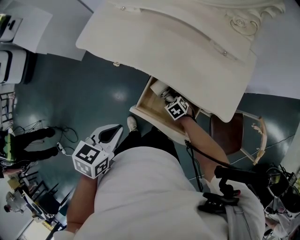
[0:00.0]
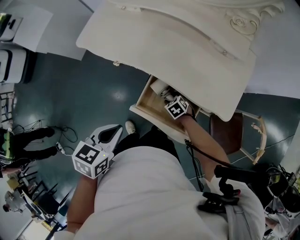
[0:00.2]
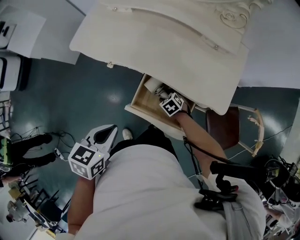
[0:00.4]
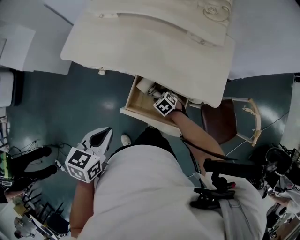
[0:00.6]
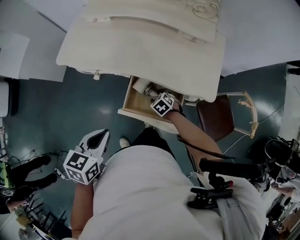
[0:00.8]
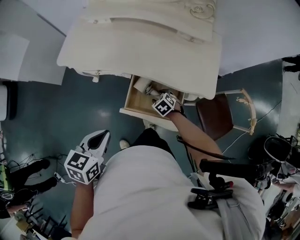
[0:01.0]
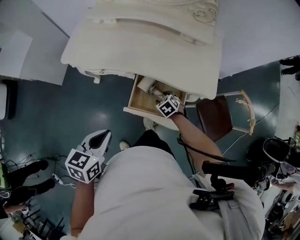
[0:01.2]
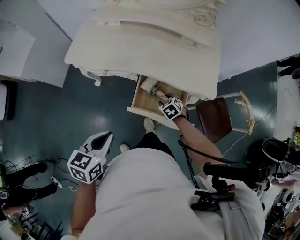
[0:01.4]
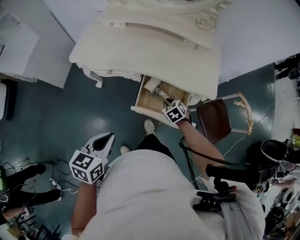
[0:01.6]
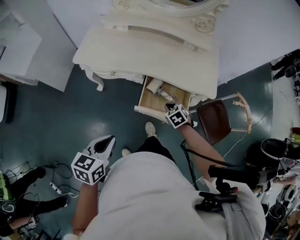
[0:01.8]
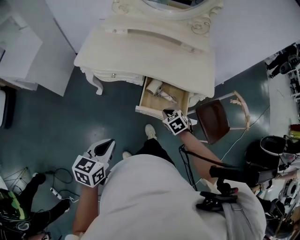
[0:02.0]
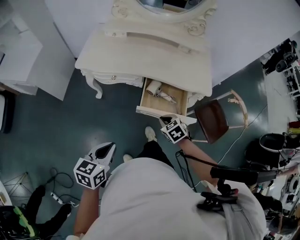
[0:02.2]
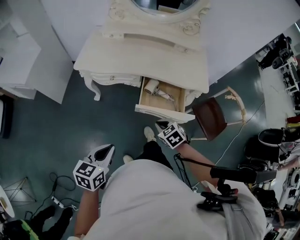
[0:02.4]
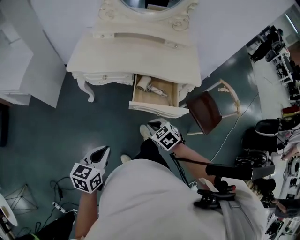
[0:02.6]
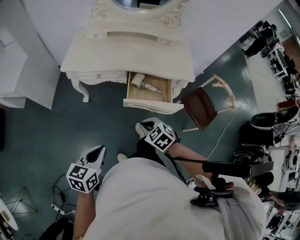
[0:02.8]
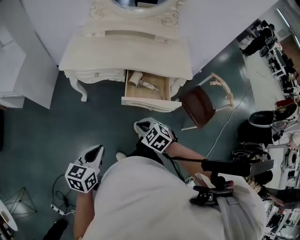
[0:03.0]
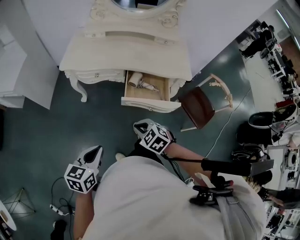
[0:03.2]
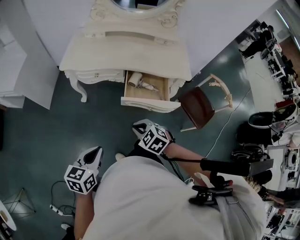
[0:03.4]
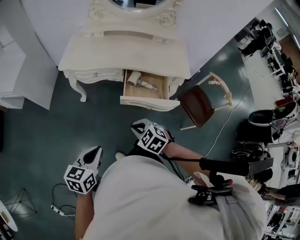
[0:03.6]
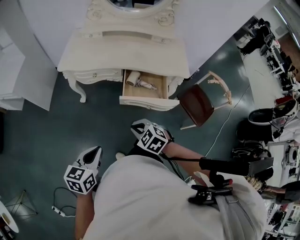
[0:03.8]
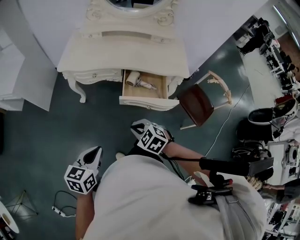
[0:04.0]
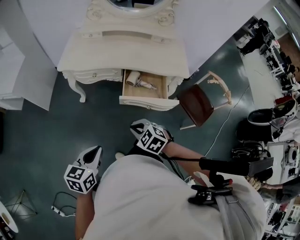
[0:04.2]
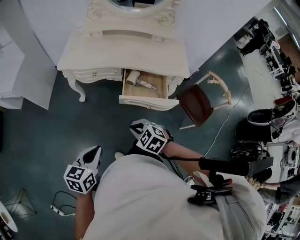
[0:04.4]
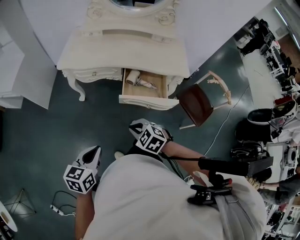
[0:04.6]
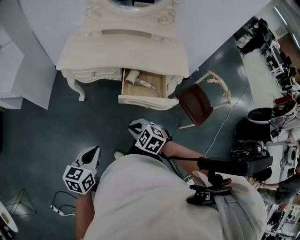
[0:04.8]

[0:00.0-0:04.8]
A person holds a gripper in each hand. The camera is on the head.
0.0 to 1.6 s: The left gripper shifts roughly 15 cm to the left and backward, while the right gripper is displaced upward and backward by roughly 10 cm, and closes.
1.6 to 3.2 s: The left gripper is displaced backward and to the left by about 20 cm. Meanwhile the right gripper goes some 35 cm backward, upward and to the left.
3.2 to 4.8 s: The grippers stay close to where they were, moving slightly.

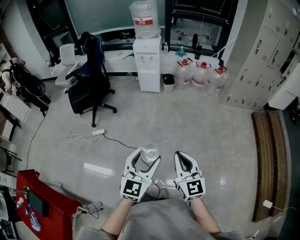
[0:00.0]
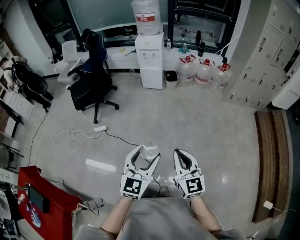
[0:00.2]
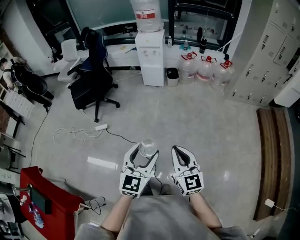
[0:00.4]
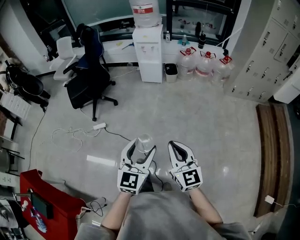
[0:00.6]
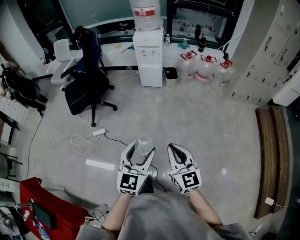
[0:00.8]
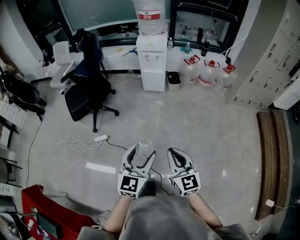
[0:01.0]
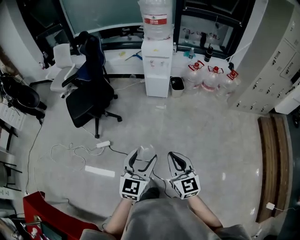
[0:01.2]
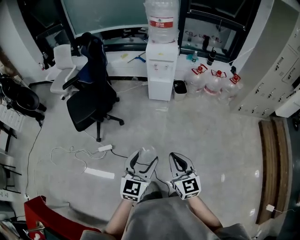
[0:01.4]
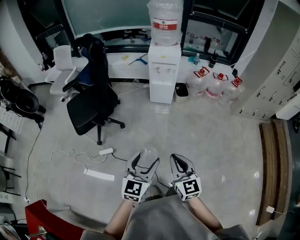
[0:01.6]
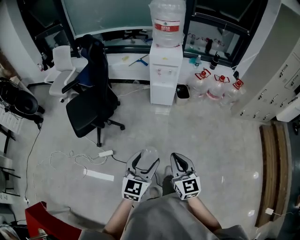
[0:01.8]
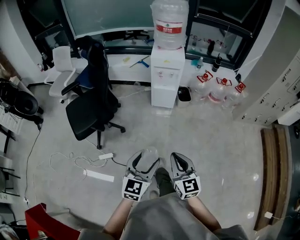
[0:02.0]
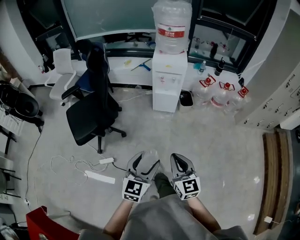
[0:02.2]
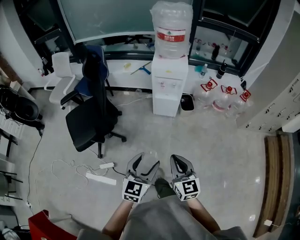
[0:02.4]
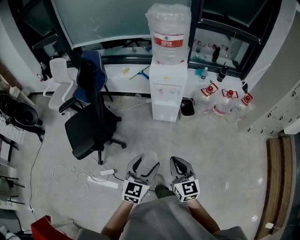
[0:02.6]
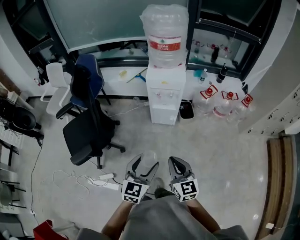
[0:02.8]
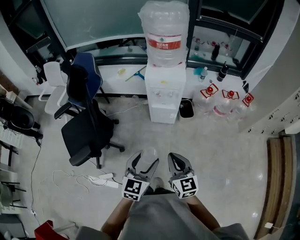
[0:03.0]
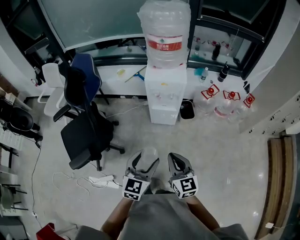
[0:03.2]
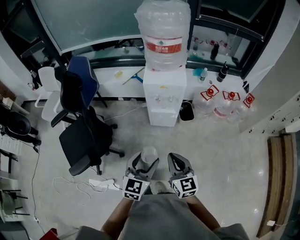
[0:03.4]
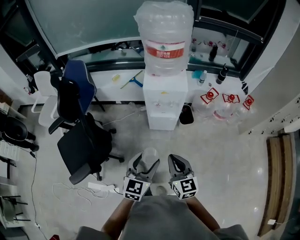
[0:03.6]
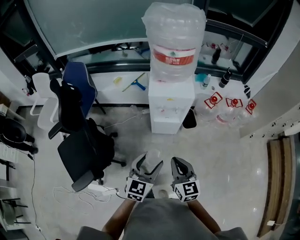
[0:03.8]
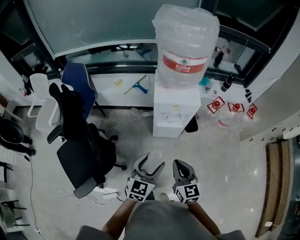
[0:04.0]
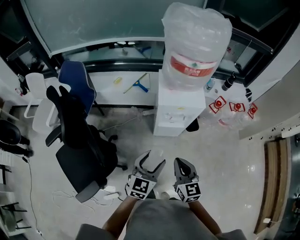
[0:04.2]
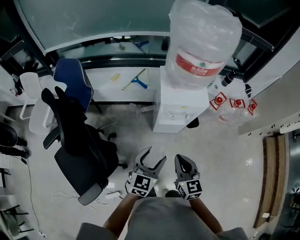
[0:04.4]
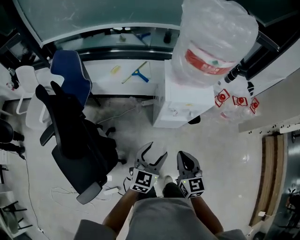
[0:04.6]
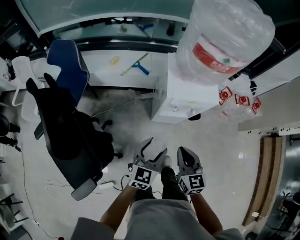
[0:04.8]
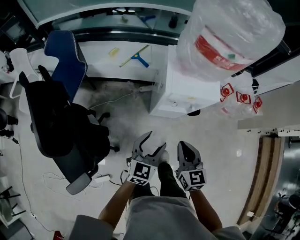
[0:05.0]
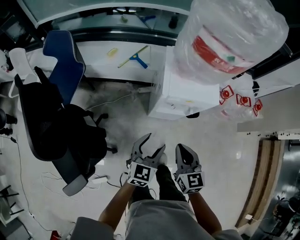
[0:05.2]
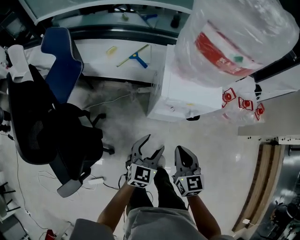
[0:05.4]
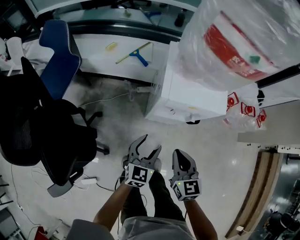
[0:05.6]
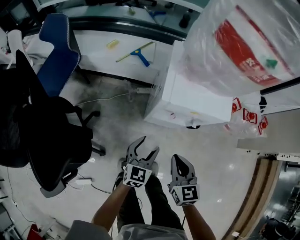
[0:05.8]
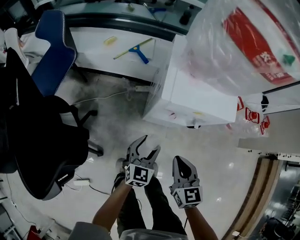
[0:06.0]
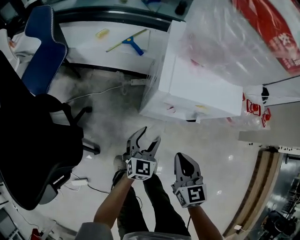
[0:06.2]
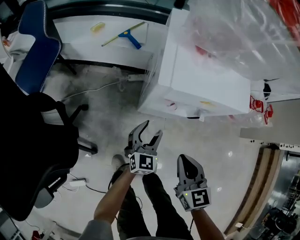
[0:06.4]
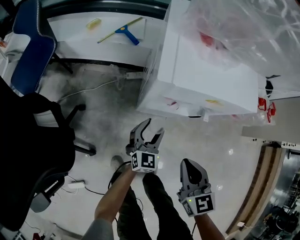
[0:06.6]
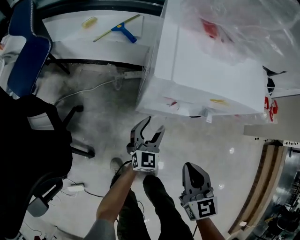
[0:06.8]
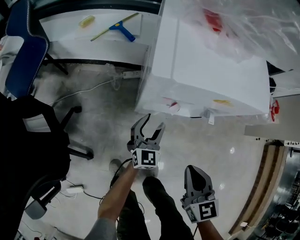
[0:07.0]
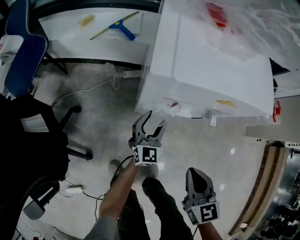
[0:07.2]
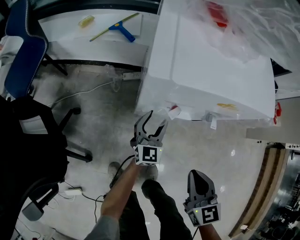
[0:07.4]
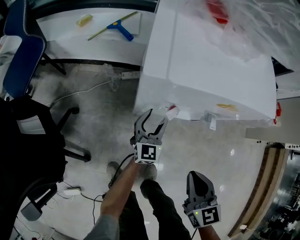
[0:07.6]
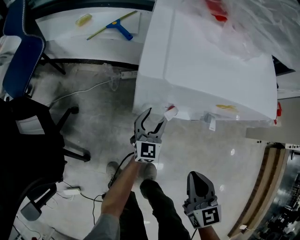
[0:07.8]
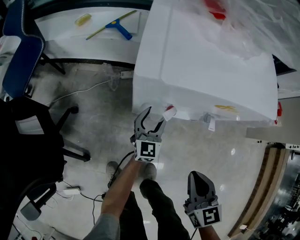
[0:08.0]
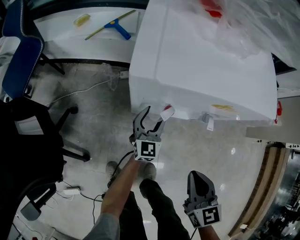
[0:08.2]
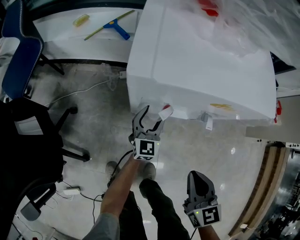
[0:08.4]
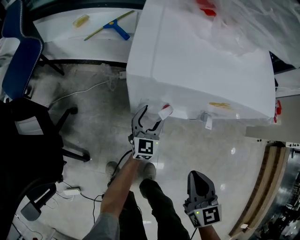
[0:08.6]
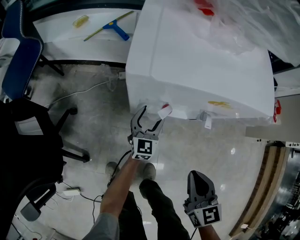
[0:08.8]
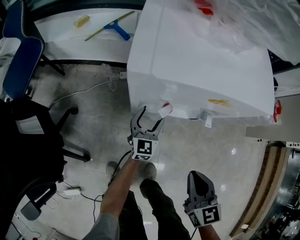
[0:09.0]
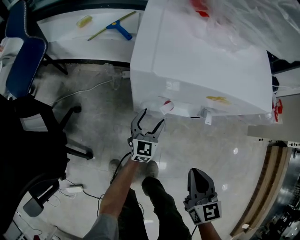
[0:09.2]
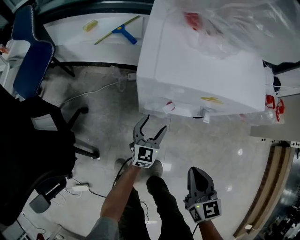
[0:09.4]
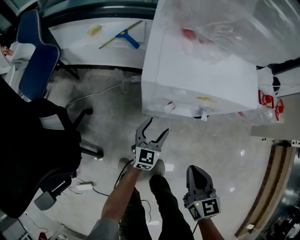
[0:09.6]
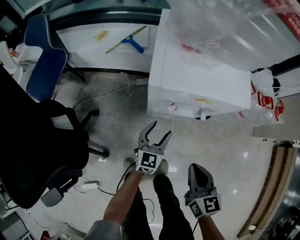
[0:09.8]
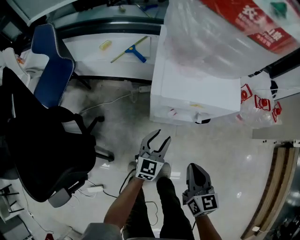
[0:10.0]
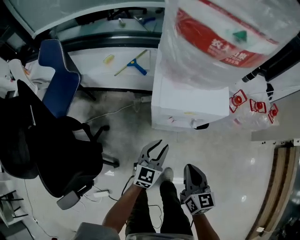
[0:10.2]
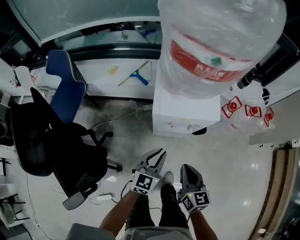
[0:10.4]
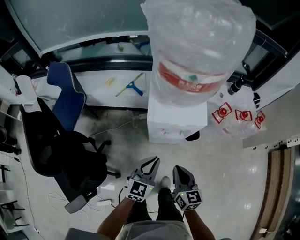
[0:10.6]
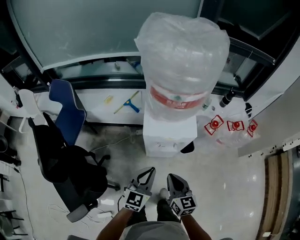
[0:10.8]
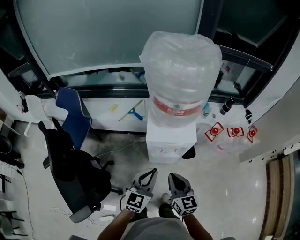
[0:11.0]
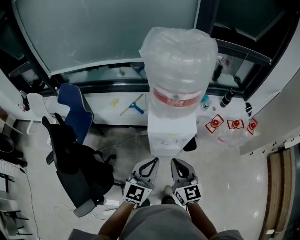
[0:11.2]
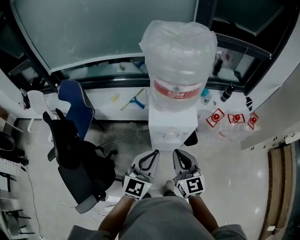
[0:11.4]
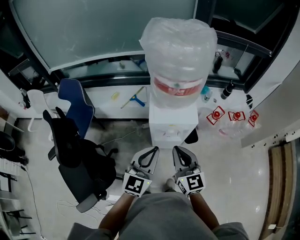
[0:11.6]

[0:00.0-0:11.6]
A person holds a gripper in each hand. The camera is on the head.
0.0 to 1.4 s: Both grippers travel together forward and to the left, some 35 cm.
1.4 to 2.8 s: The grippers both shift forward by approximately 35 cm.
2.8 to 4.4 s: Both grippers move forward and to the left, approximately 35 cm.
4.4 to 5.8 s: The two grippers go roughly 25 cm downward and forward.
5.8 to 7.2 s: The left gripper shifts about 25 cm downward and forward, while the right gripper heads downward and to the right, covering approximately 15 cm.
7.2 to 8.8 s: The left gripper ends up about 5 cm from where it was.
8.8 to 10.2 s: The right gripper heads upward and to the left, covering about 15 cm, while the left gripper goes roughly 30 cm upward and backward, and closes its fingers.
10.2 to 11.6 s: The grippers both shift upward by roughly 30 cm. The right gripper swivels about 30 degrees.

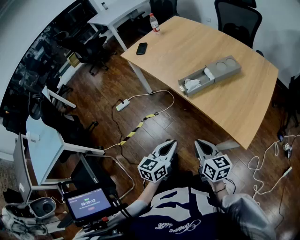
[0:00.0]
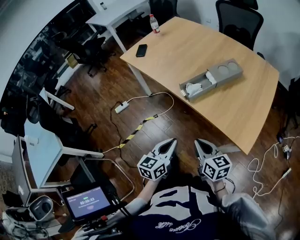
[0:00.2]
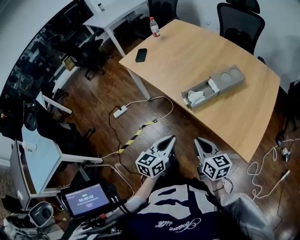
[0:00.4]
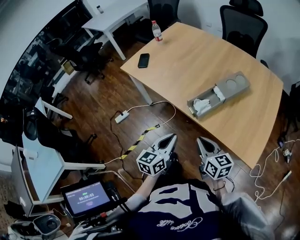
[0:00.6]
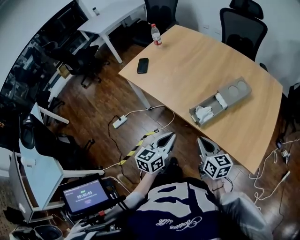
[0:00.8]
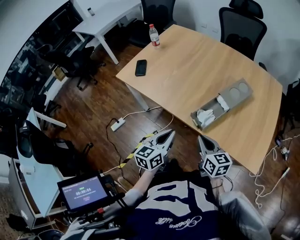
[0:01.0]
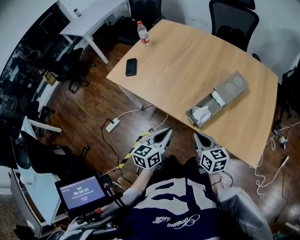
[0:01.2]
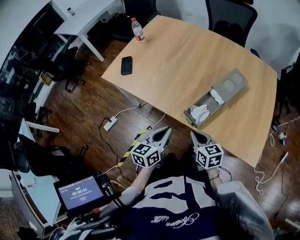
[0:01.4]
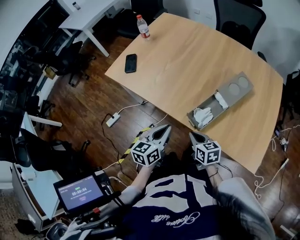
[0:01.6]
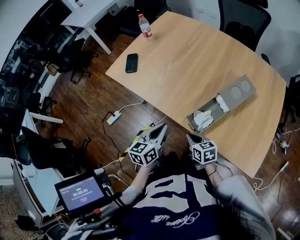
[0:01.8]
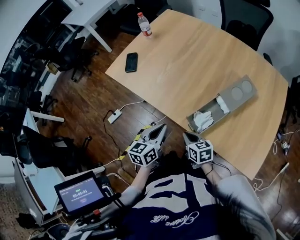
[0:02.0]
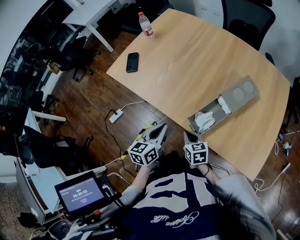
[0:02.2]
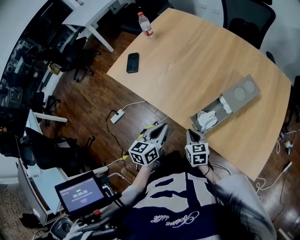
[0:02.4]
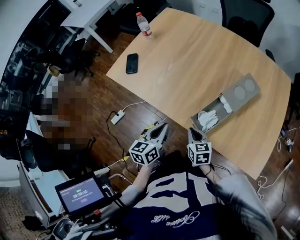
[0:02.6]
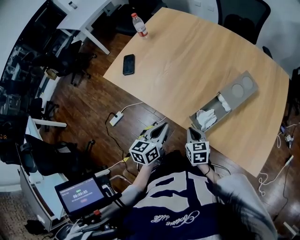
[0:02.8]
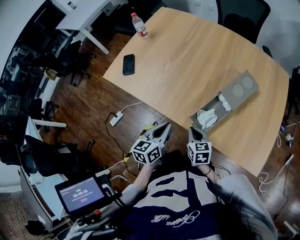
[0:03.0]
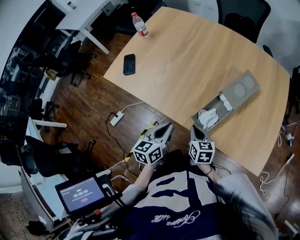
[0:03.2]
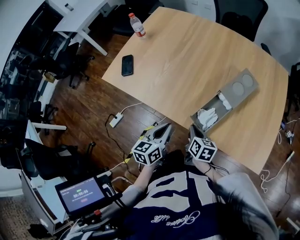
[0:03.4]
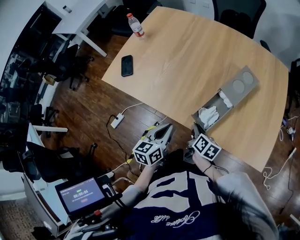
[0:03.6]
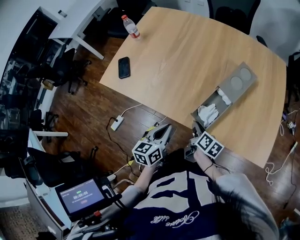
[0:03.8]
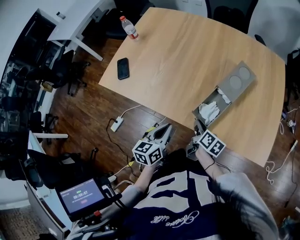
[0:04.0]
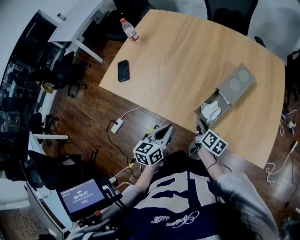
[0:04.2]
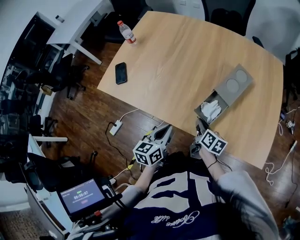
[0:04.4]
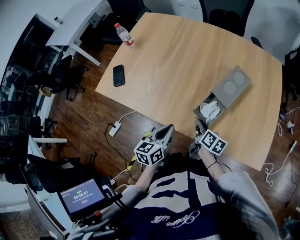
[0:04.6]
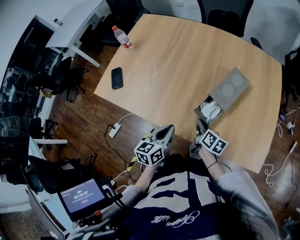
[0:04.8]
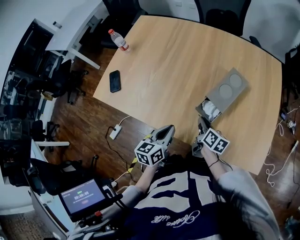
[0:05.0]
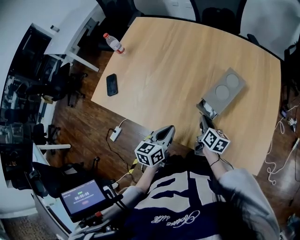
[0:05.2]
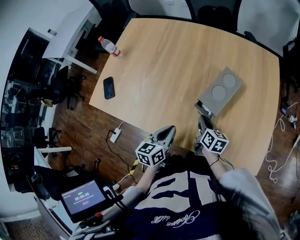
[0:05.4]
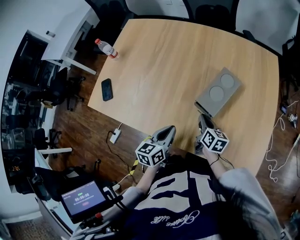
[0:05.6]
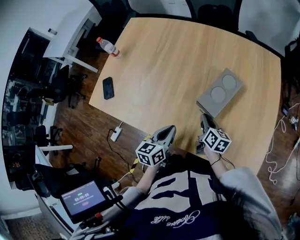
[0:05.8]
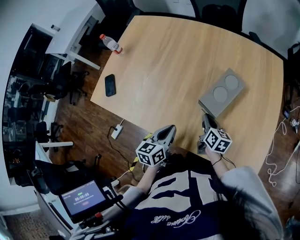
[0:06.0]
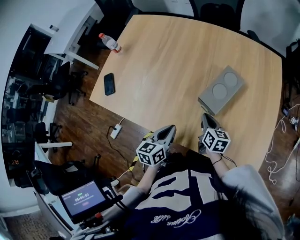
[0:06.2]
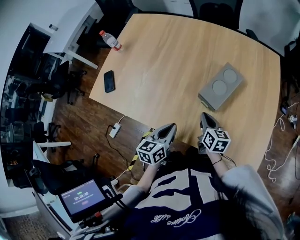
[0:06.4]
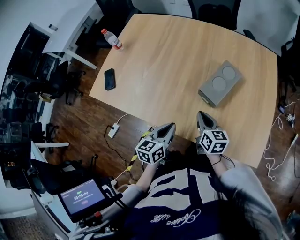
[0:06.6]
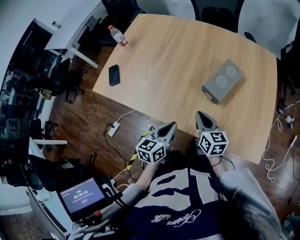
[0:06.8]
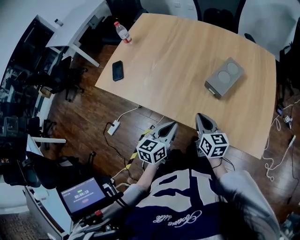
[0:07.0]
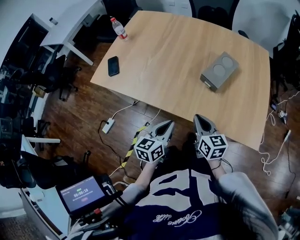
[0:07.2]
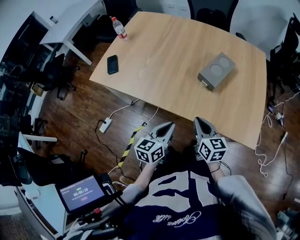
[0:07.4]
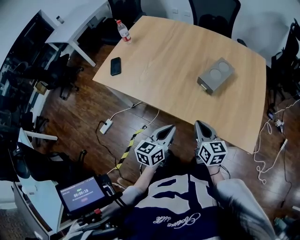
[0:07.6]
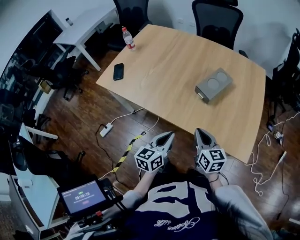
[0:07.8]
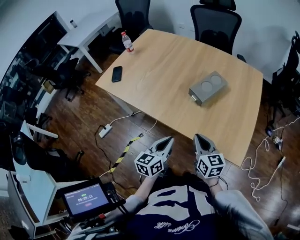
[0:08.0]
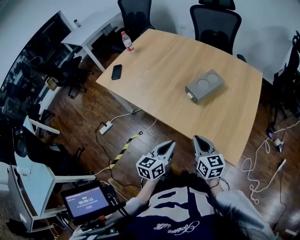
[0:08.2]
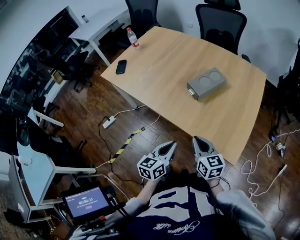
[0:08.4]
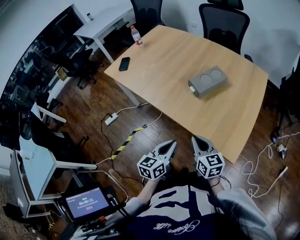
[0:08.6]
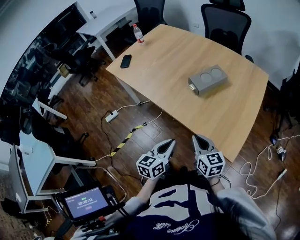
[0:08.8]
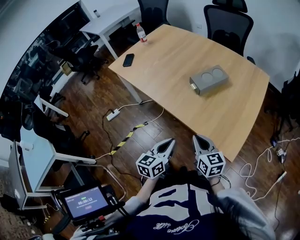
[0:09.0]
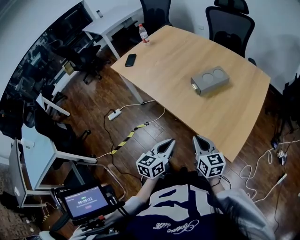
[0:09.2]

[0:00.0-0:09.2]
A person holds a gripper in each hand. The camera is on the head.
0.0 to 1.6 s: The left gripper goes about 30 cm forward. The right gripper travels forward and to the left by about 30 cm.
1.6 to 3.0 s: There are only small adjustments of the grippers.
3.0 to 4.6 s: The right gripper heads forward and to the right, covering approximately 10 cm, and rolls clockwise, seen from behind, by some 40 degrees.
4.6 to 6.2 s: The grippers both shift to the right and forward by some 10 cm. The right gripper turns by about 20 degrees.
6.2 to 7.6 s: The right gripper shifts approximately 20 cm backward and upward, and swivels some 20 degrees, while the left gripper heads backward, covering roughly 15 cm.
7.6 to 9.2 s: The left gripper shifts approximately 20 cm backward and to the right. Meanwhile the right gripper shifts approximately 20 cm to the right and backward, and swivels about 20 degrees.
